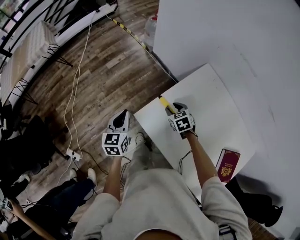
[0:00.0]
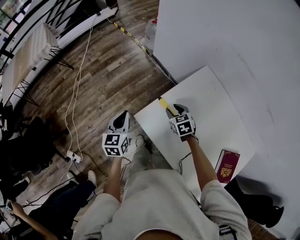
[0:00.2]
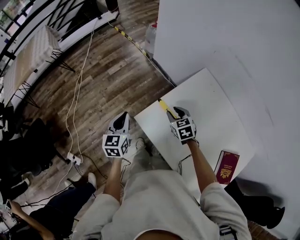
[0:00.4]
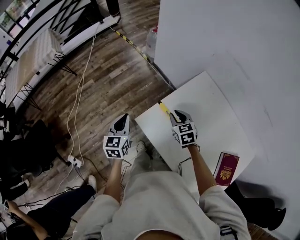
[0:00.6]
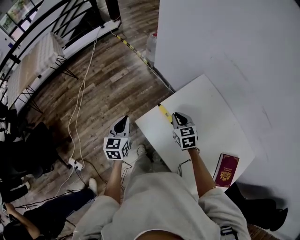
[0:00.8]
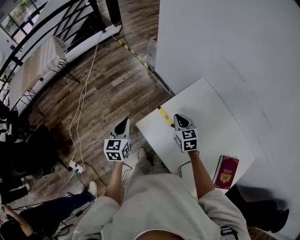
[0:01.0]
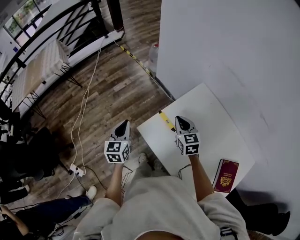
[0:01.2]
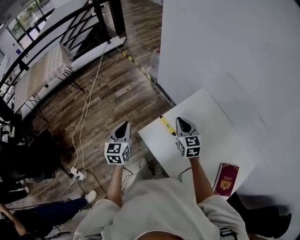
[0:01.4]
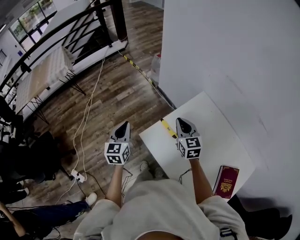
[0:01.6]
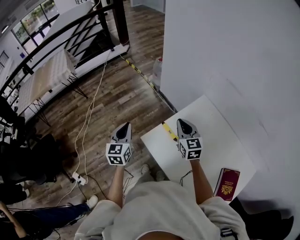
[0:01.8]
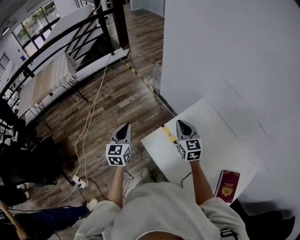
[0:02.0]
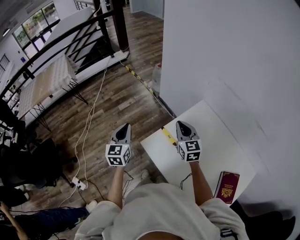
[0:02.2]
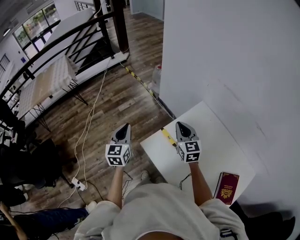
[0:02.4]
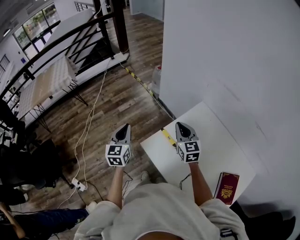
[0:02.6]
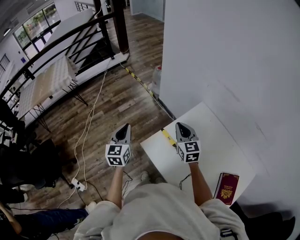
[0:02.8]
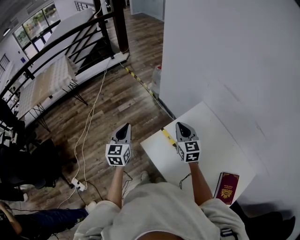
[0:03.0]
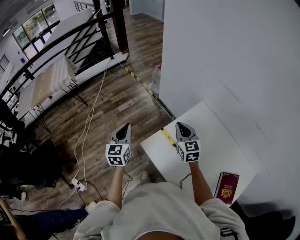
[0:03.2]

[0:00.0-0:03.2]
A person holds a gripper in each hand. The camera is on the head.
0.0 to 1.6 s: The right gripper is displaced upward by about 20 cm, angles its fingers upward, by roughly 40 degrees, and closes; the left gripper goes roughly 10 cm upward.
1.6 to 3.2 s: The grippers stay close to where they were, moving slightly.

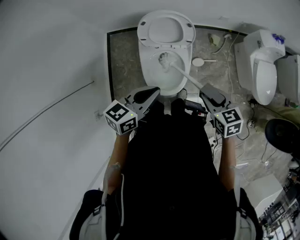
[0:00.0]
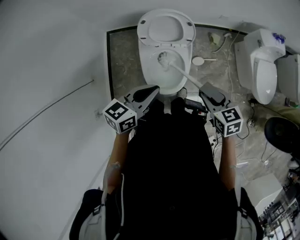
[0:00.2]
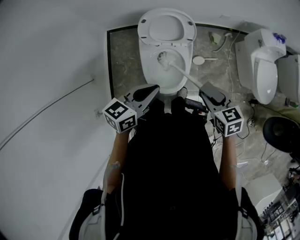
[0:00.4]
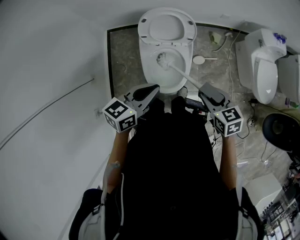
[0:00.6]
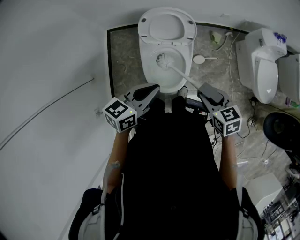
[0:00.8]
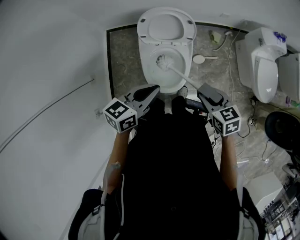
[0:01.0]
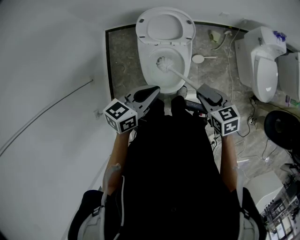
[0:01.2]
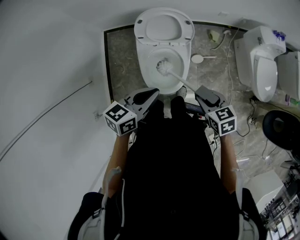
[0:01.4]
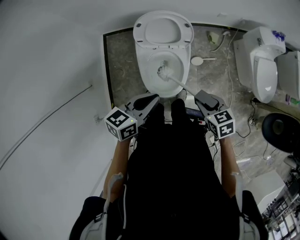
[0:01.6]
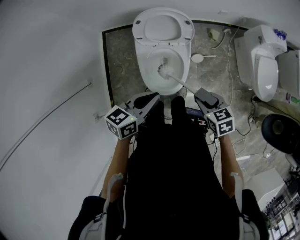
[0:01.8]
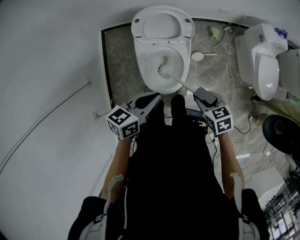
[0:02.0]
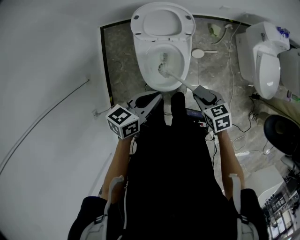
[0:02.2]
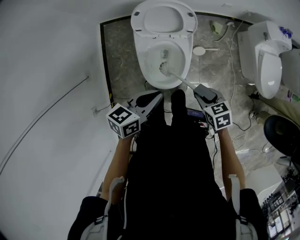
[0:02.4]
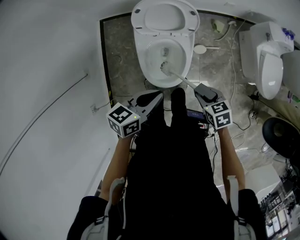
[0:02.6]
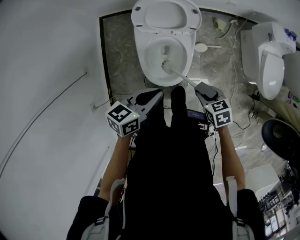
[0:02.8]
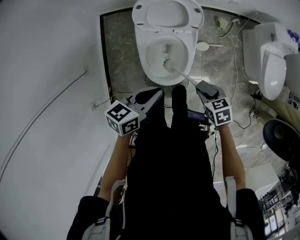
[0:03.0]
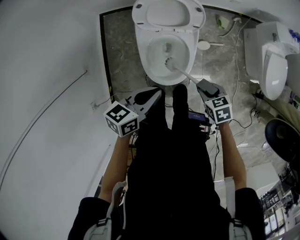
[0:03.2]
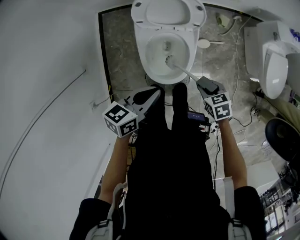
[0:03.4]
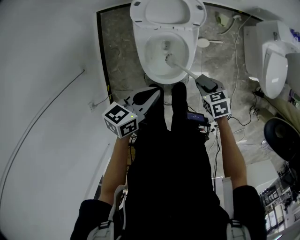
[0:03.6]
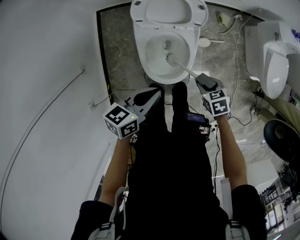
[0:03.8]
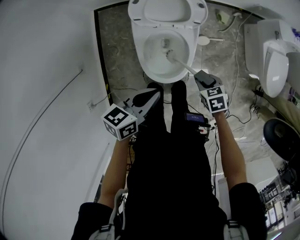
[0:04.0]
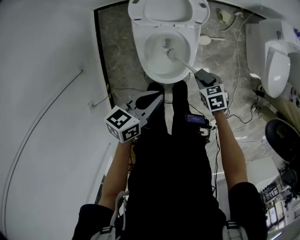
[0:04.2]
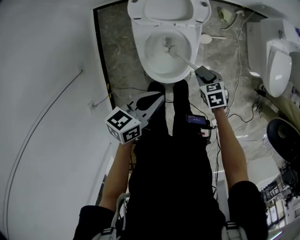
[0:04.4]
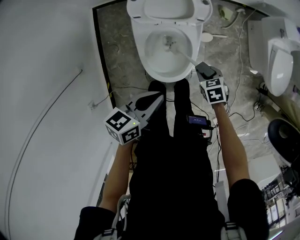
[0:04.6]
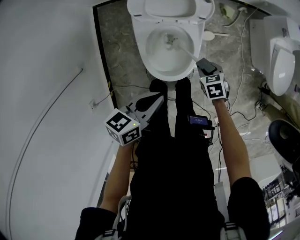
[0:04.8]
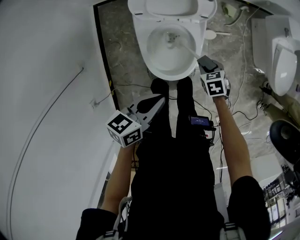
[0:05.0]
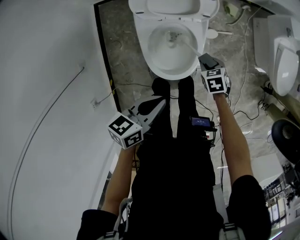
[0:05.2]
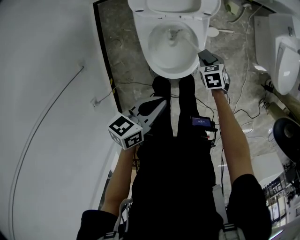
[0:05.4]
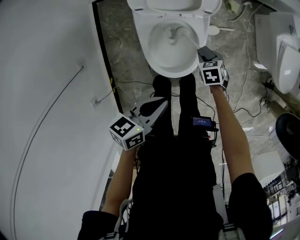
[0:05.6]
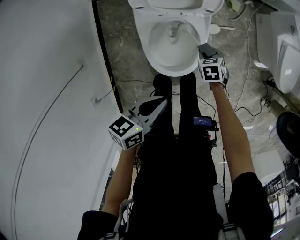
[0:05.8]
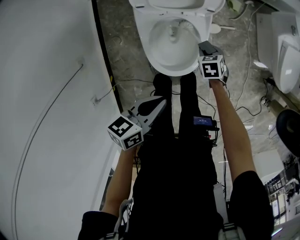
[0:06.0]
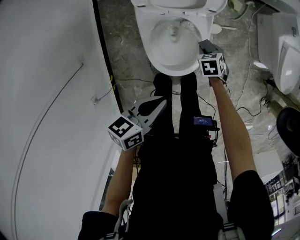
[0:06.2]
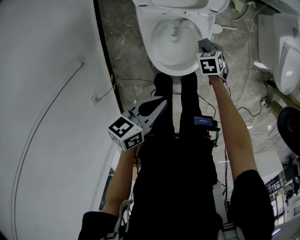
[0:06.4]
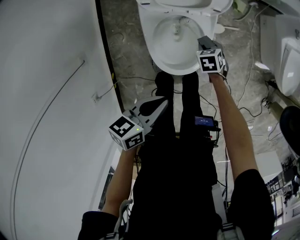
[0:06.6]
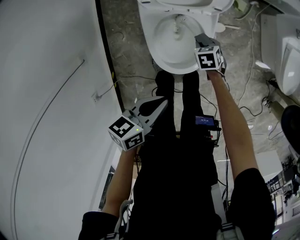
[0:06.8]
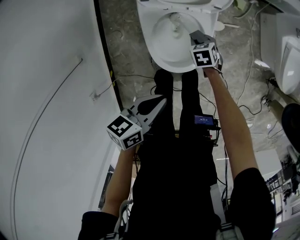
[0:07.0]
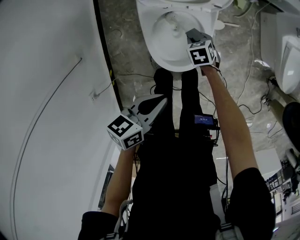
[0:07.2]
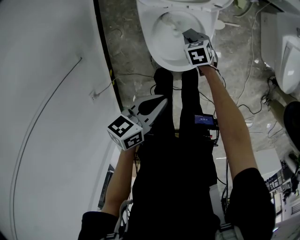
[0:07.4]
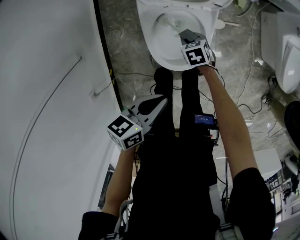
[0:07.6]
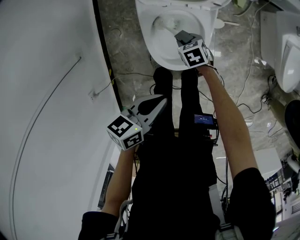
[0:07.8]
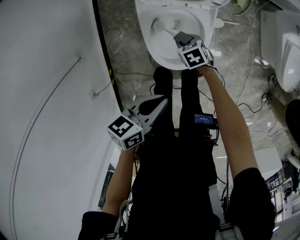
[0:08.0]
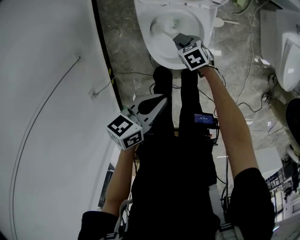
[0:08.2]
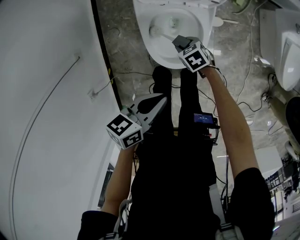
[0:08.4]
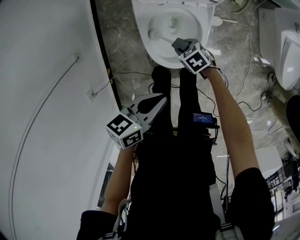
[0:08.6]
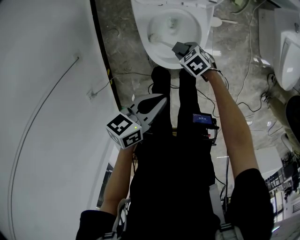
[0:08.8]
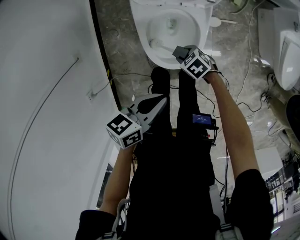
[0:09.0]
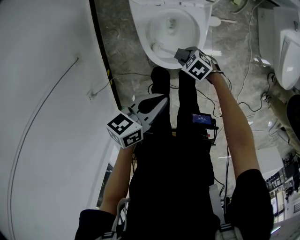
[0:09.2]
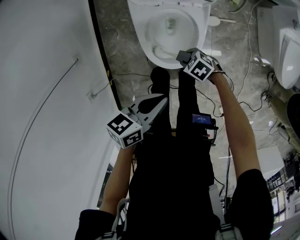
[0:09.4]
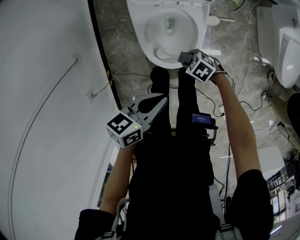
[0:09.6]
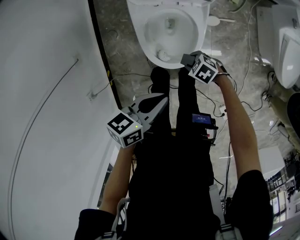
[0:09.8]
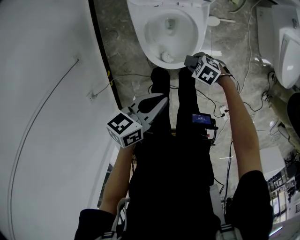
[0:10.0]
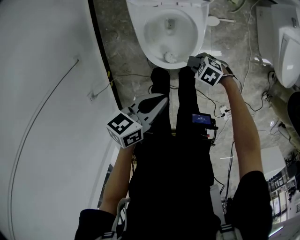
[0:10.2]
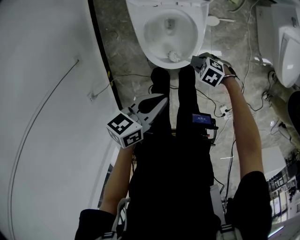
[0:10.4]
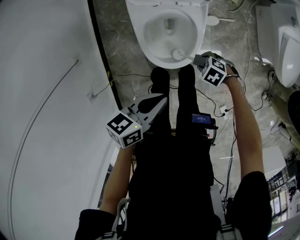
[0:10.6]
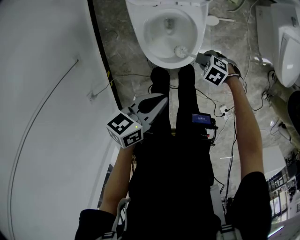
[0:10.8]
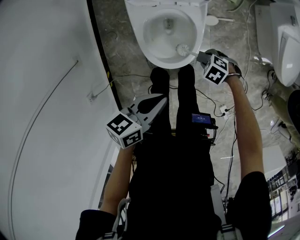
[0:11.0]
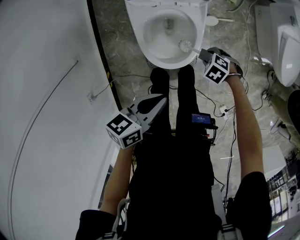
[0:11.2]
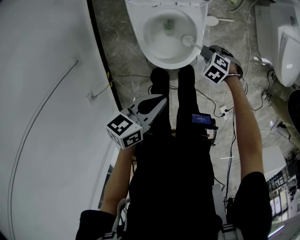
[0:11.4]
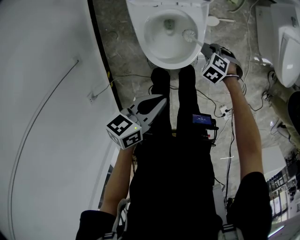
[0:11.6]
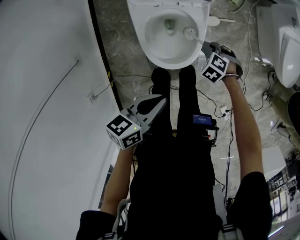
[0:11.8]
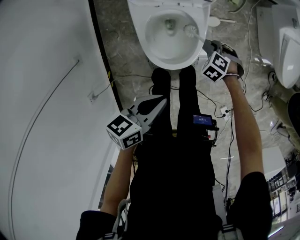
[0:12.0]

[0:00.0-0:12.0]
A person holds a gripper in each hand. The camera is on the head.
1.6 to 3.0 s: The left gripper is displaced downward by roughly 5 cm.

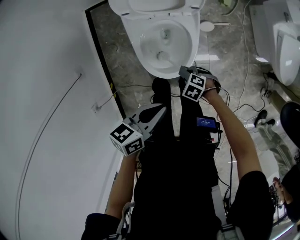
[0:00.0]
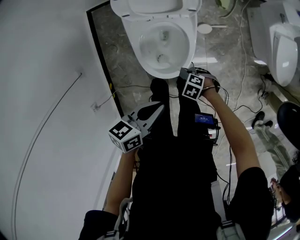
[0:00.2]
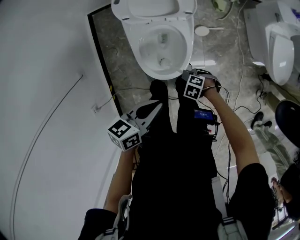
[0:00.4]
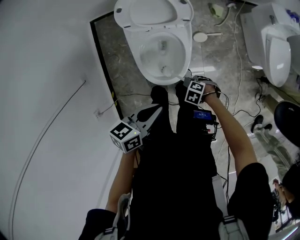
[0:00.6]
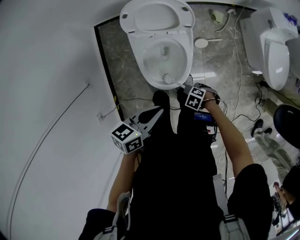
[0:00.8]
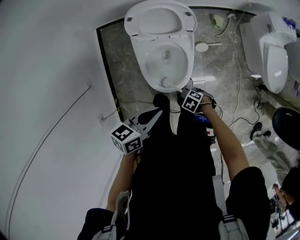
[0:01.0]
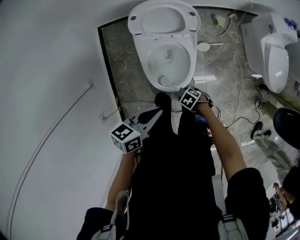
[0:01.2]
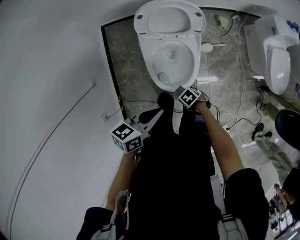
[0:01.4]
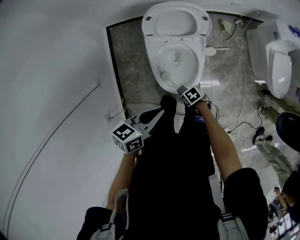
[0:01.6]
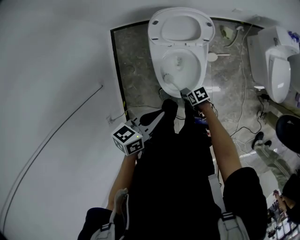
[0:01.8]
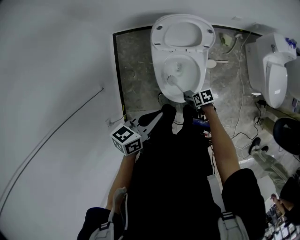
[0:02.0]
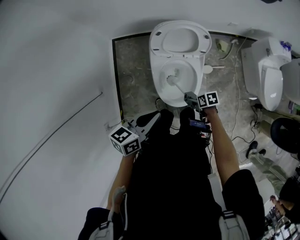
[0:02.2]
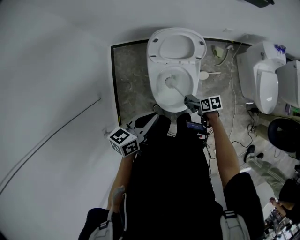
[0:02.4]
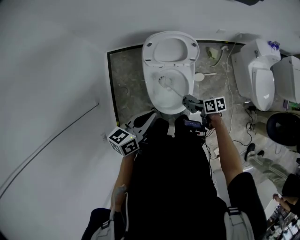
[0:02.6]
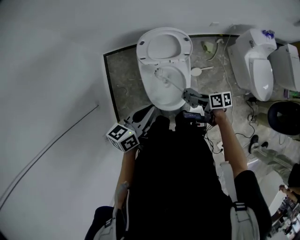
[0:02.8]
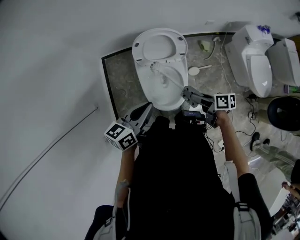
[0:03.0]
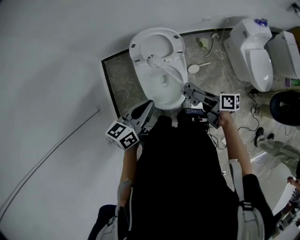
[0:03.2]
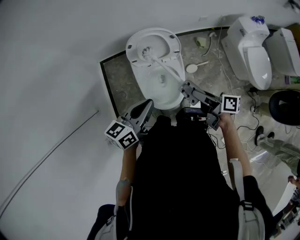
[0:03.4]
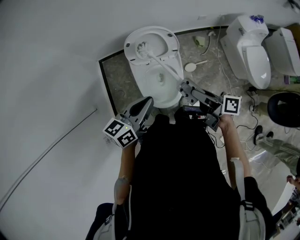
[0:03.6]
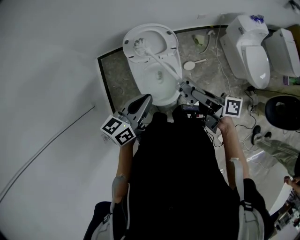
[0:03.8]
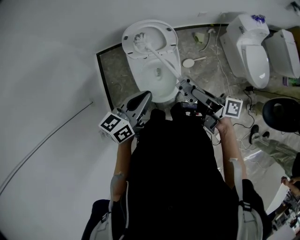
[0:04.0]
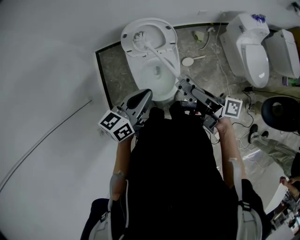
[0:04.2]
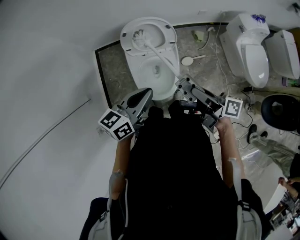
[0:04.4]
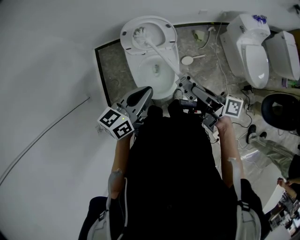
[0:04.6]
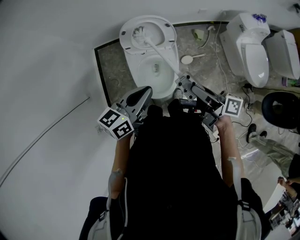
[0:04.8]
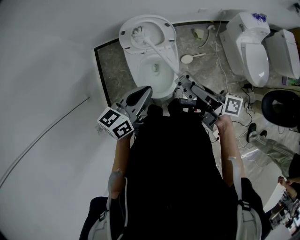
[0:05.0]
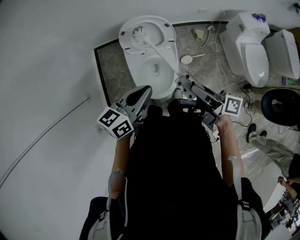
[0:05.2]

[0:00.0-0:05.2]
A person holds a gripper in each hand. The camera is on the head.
0.0 to 1.8 s: The left gripper travels upward by some 10 cm.
1.8 to 3.4 s: The left gripper heads upward, covering roughly 15 cm.

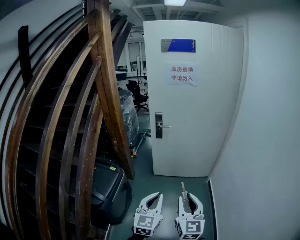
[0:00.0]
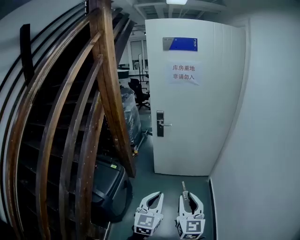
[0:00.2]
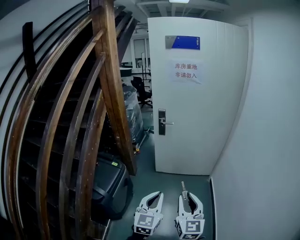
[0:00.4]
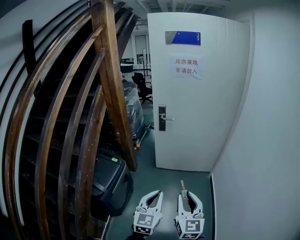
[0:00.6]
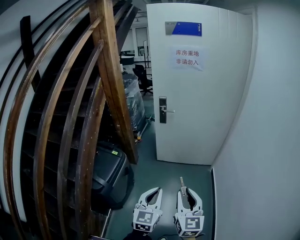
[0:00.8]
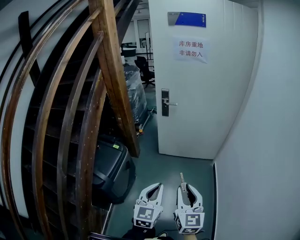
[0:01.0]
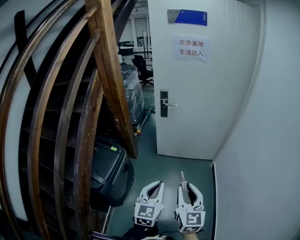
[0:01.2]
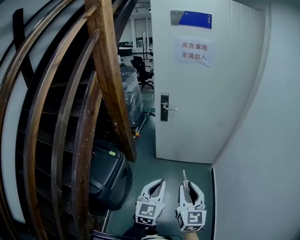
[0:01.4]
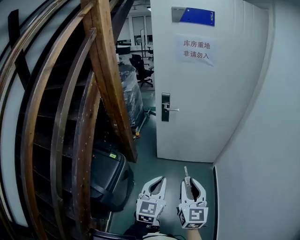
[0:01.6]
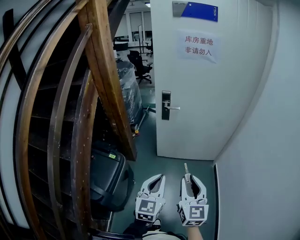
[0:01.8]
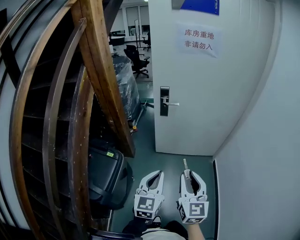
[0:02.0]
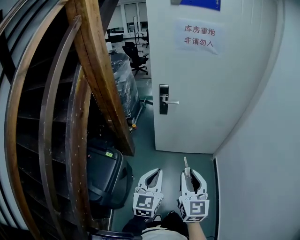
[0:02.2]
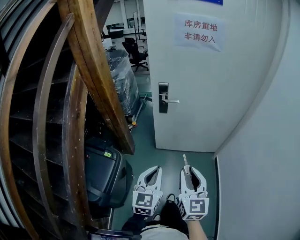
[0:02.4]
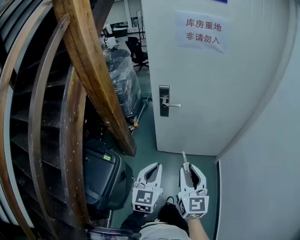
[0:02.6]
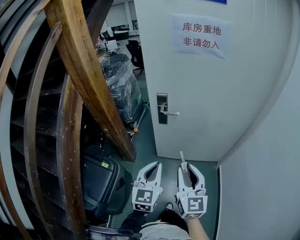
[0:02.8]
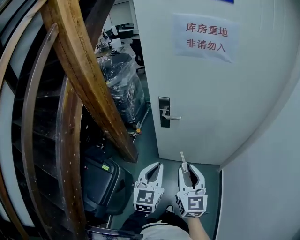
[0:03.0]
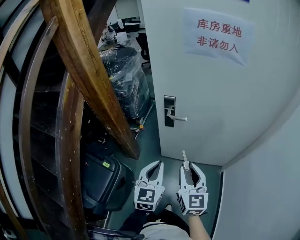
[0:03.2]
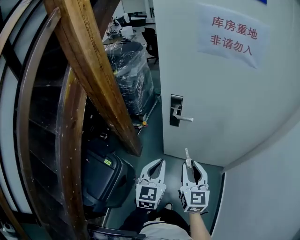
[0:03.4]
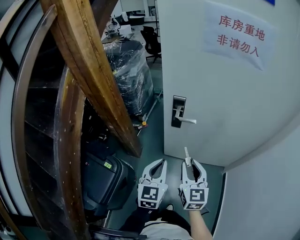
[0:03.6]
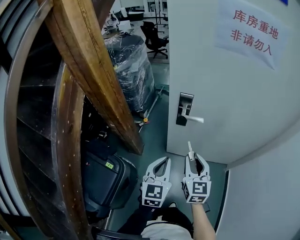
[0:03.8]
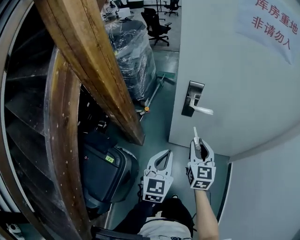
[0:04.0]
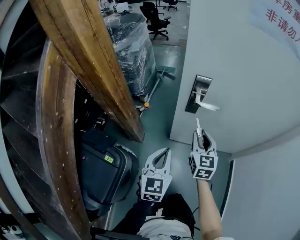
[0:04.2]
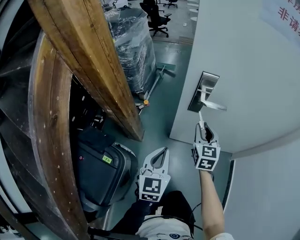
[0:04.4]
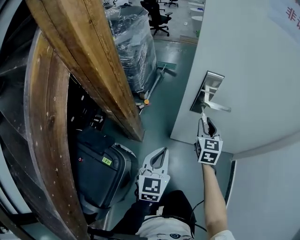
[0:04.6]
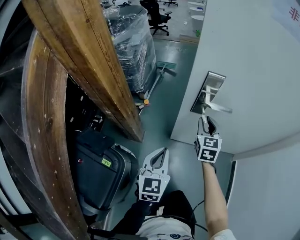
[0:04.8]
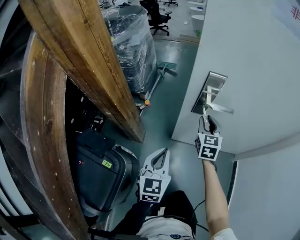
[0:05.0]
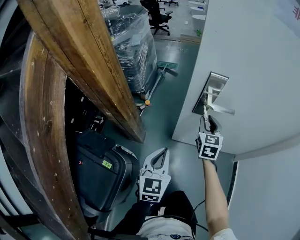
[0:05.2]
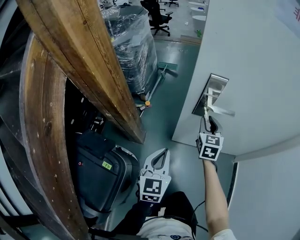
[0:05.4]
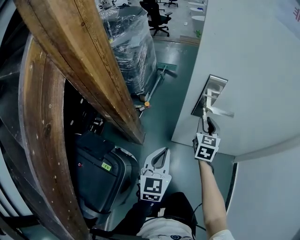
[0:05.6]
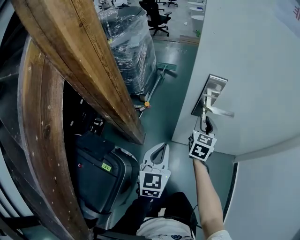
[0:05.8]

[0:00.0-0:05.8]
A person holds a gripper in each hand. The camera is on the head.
0.0 to 1.4 s: The grippers both shift forward by some 10 cm.
1.4 to 2.8 s: The grippers both shift forward by roughly 30 cm.
2.8 to 4.4 s: The left gripper moves forward, downward and to the left, some 30 cm, while the right gripper moves forward and downward, about 40 cm.
4.4 to 5.8 s: Both grippers move forward, approximately 5 cm.
